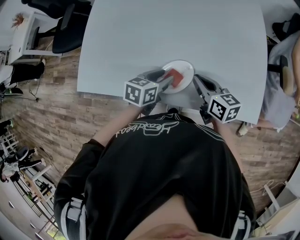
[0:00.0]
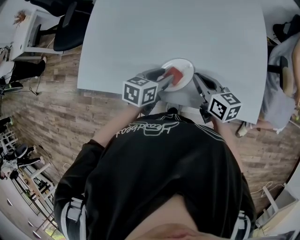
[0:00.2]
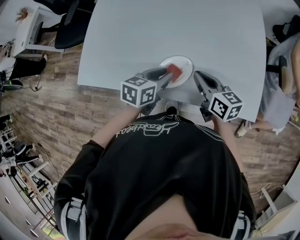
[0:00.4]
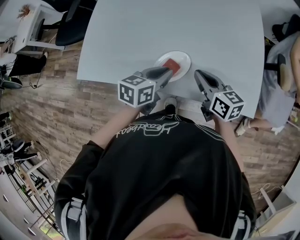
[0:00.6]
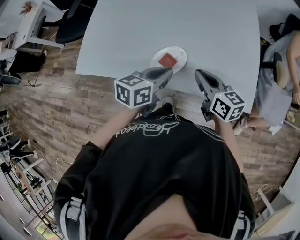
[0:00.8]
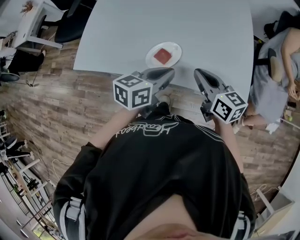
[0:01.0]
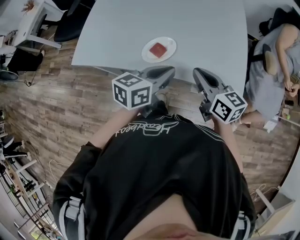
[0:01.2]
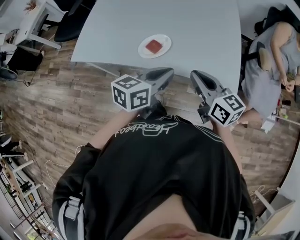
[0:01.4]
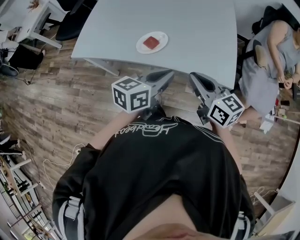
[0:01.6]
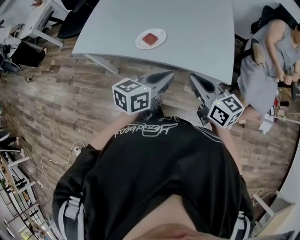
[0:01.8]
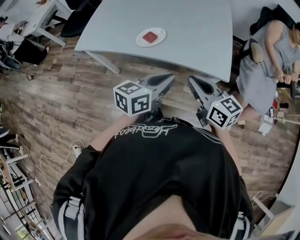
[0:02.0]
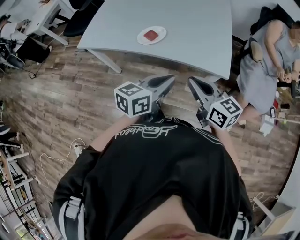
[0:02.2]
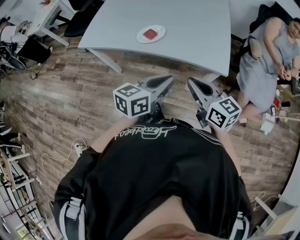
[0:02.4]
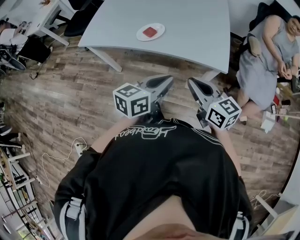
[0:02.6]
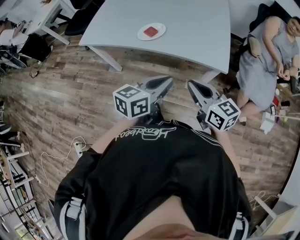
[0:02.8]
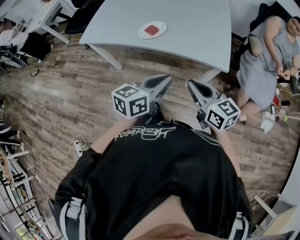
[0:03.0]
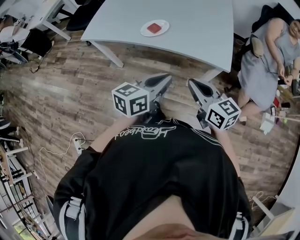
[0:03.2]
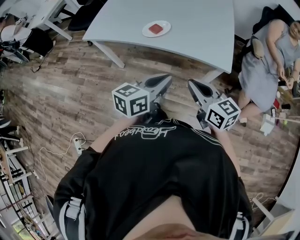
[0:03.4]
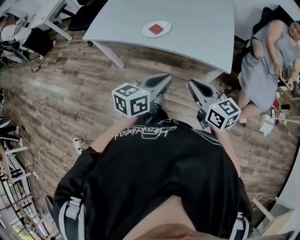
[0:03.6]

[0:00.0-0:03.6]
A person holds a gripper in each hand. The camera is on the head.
0:00.0 to 0:01.8: The right gripper moves backward, upward and to the right, some 30 cm, and rotates roughly 20 degrees. The left gripper shifts roughly 35 cm backward, to the right and upward, rotates some 20 degrees, and closes up.
0:01.8 to 0:03.6: Both grippers travel together backward, approximately 10 cm.

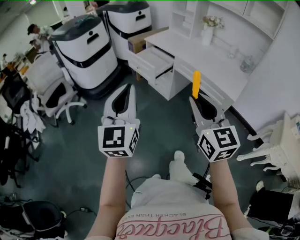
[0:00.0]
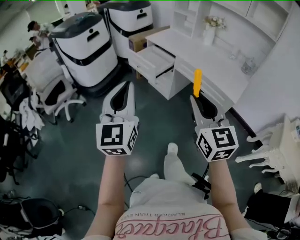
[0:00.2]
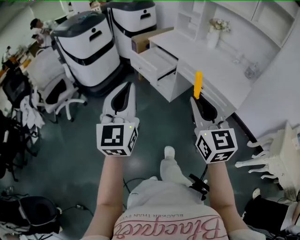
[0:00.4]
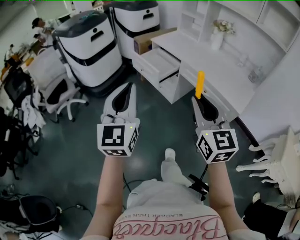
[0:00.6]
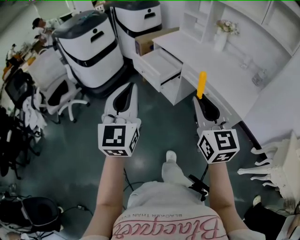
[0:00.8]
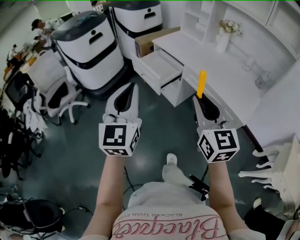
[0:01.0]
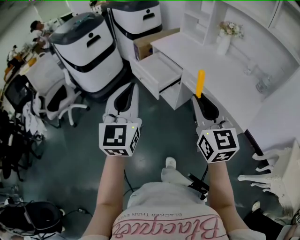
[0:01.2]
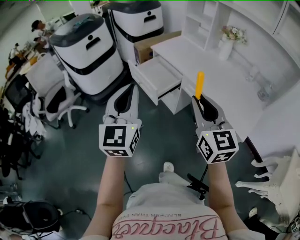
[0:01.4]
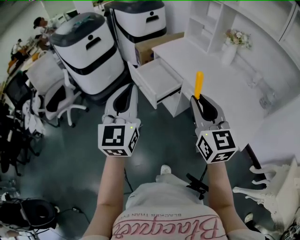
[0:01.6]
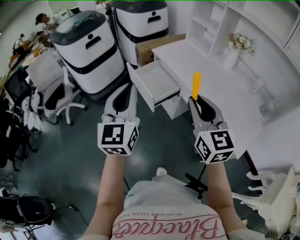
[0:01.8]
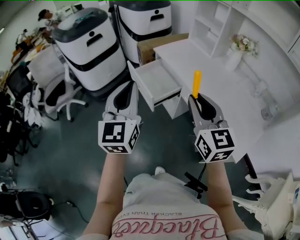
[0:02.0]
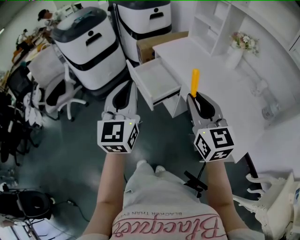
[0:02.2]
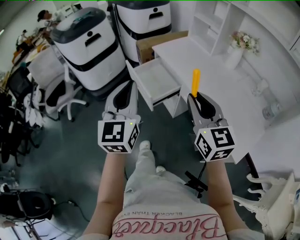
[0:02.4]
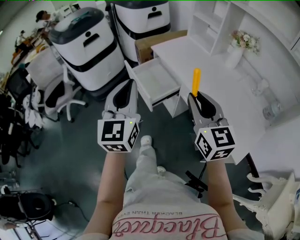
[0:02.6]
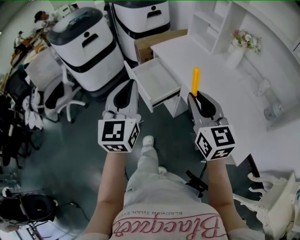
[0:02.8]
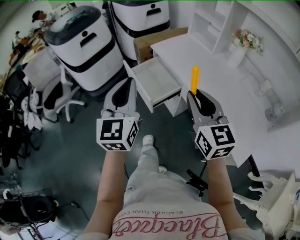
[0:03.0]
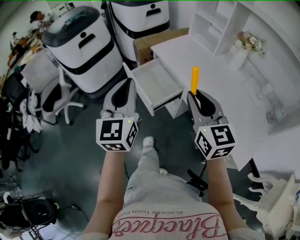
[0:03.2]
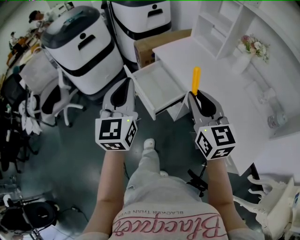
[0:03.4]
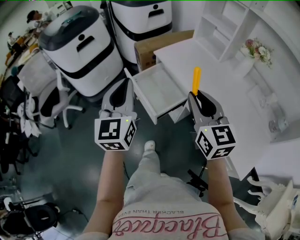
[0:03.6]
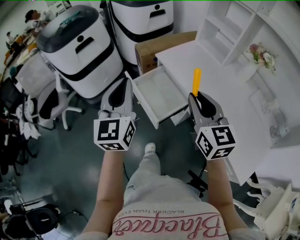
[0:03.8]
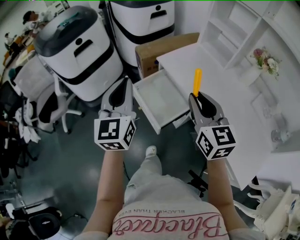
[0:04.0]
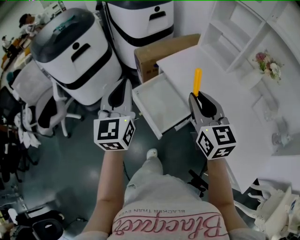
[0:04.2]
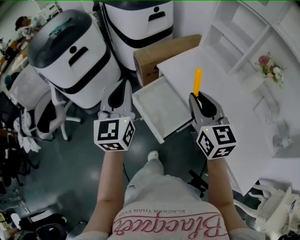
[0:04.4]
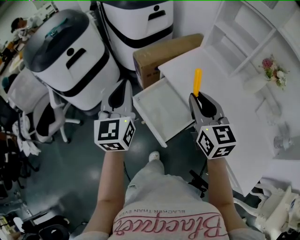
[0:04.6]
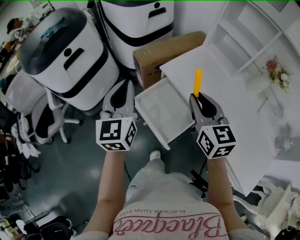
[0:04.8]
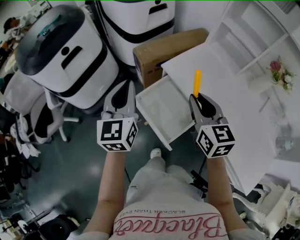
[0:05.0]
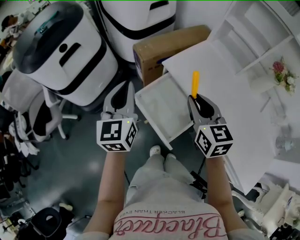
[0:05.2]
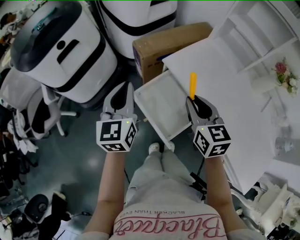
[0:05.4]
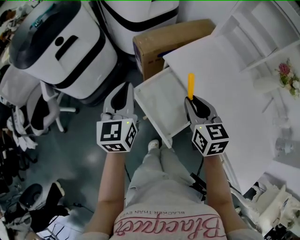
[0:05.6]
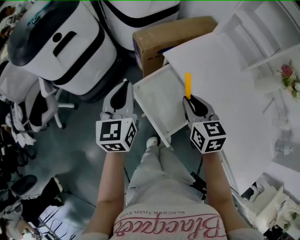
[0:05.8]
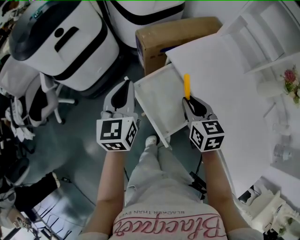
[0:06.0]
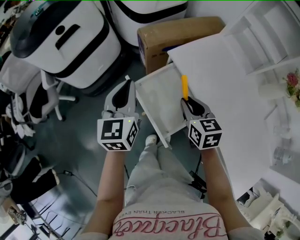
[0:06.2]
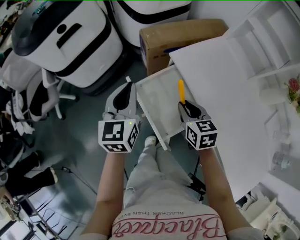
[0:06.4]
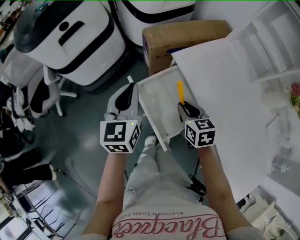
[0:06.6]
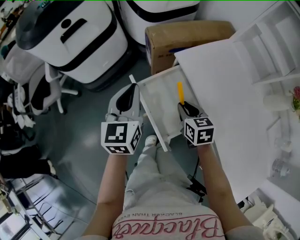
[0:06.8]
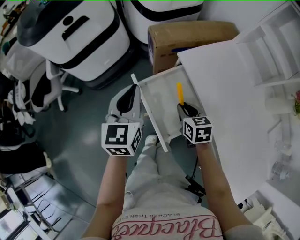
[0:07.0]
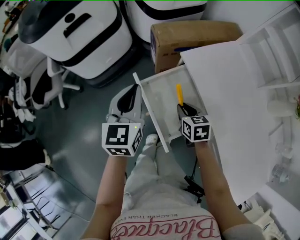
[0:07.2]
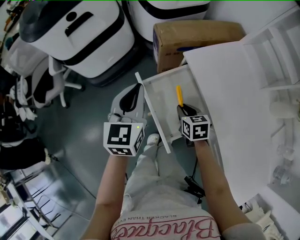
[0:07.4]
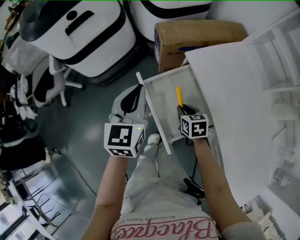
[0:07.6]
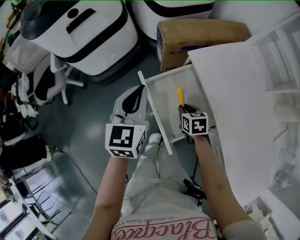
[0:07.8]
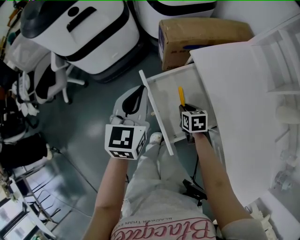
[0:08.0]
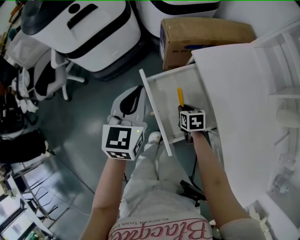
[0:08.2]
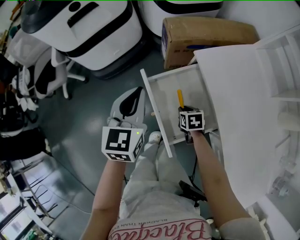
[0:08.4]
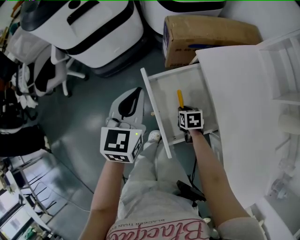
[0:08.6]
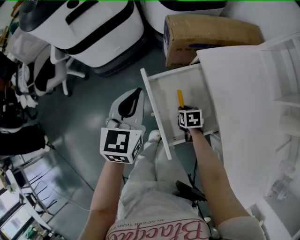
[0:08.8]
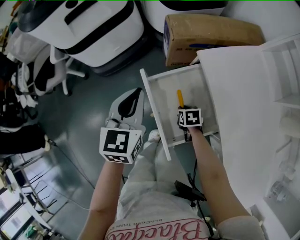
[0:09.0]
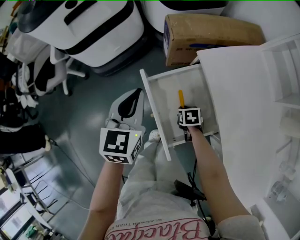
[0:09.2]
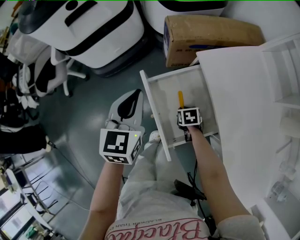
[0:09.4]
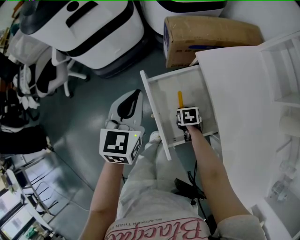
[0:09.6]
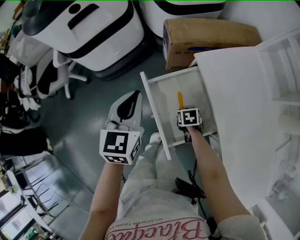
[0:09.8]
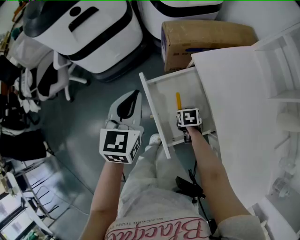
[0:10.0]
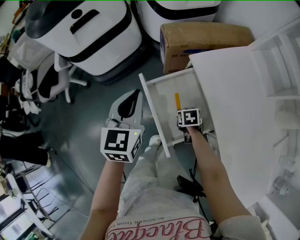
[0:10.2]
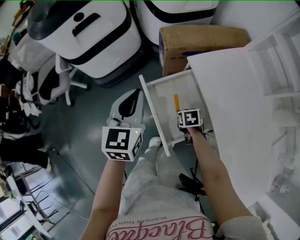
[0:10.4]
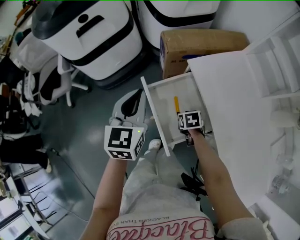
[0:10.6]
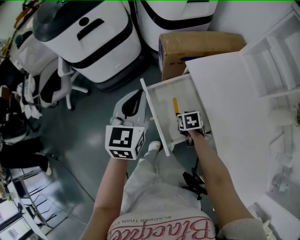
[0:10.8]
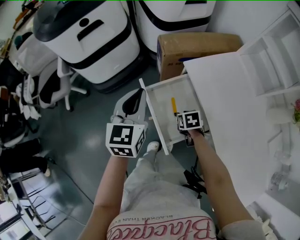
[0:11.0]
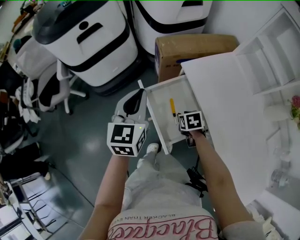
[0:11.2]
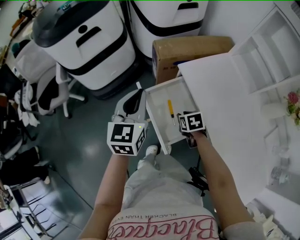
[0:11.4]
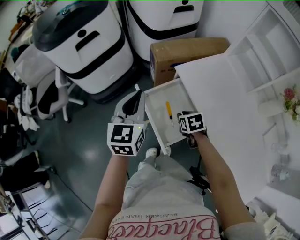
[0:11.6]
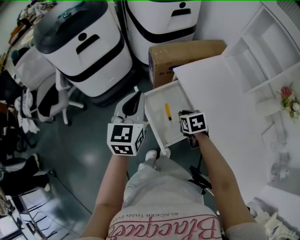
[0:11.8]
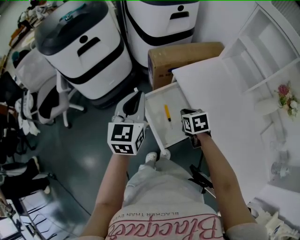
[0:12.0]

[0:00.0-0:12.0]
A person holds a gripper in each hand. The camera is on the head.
0:00.0 to 0:01.6: The two grippers go approximately 25 cm forward.
0:01.6 to 0:03.0: Both grippers move forward, approximately 10 cm.
0:03.0 to 0:04.4: The two grippers go roughly 25 cm forward.
0:04.4 to 0:06.0: Both grippers move downward and forward, approximately 15 cm. The right gripper turns by approximately 20 degrees.
0:06.0 to 0:07.6: The right gripper shifts approximately 20 cm downward, and rotates approximately 20 degrees.
0:07.6 to 0:09.0: The right gripper is displaced downward by roughly 10 cm.
0:09.0 to 0:10.4: The grippers both shift upward by about 5 cm.
0:10.4 to 0:12.0: The right gripper is displaced upward by approximately 15 cm, and closes. Meanwhile the left gripper shifts about 5 cm upward.

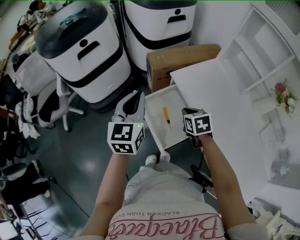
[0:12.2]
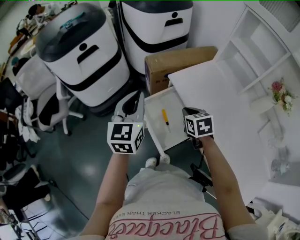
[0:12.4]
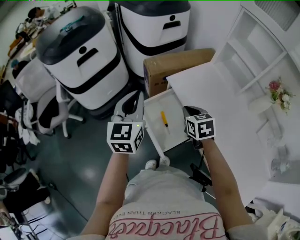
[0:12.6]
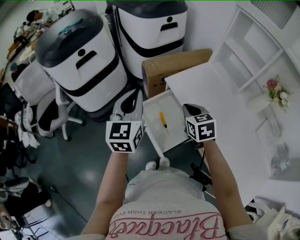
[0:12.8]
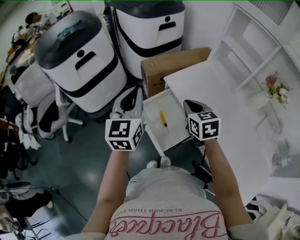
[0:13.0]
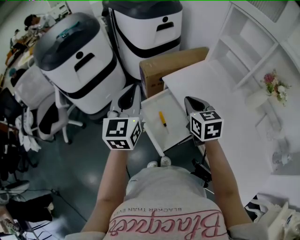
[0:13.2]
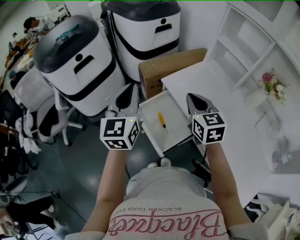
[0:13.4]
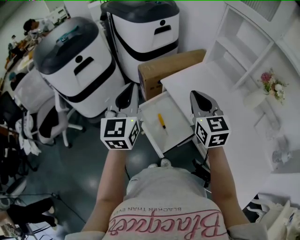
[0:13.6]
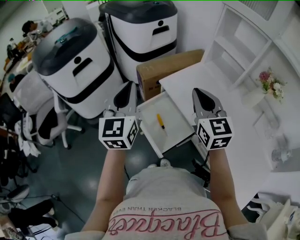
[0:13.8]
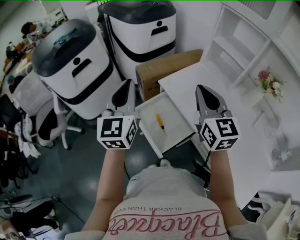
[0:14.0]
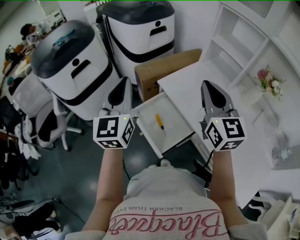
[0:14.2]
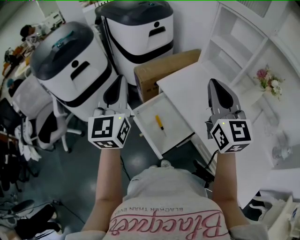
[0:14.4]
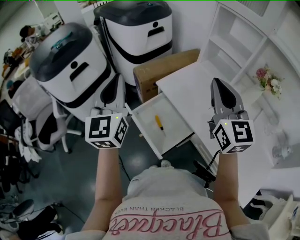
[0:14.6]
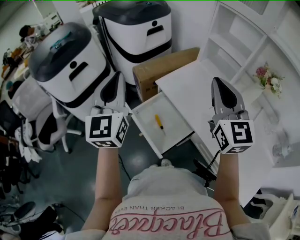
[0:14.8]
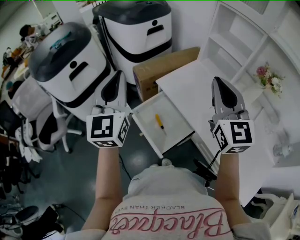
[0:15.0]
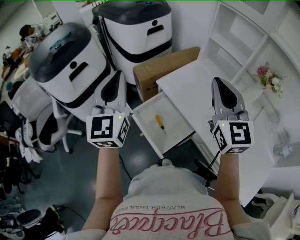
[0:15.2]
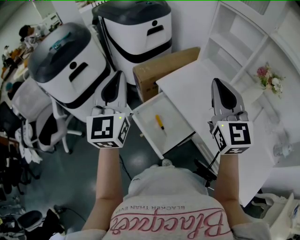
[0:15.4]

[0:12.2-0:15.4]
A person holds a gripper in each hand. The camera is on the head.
0:12.2 to 0:13.8: The right gripper shifts about 25 cm upward, and tilts its fingers some 40 degrees upward, while the left gripper goes some 10 cm upward.
0:13.8 to 0:15.4: Both grippers travel together upward, some 5 cm.

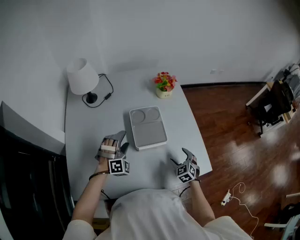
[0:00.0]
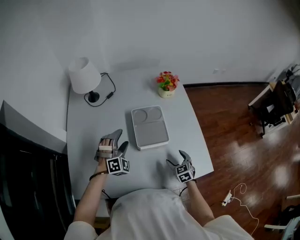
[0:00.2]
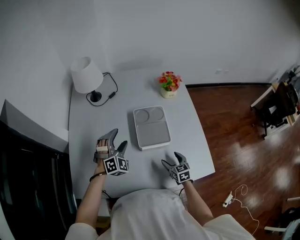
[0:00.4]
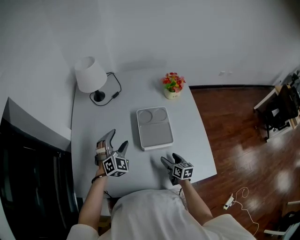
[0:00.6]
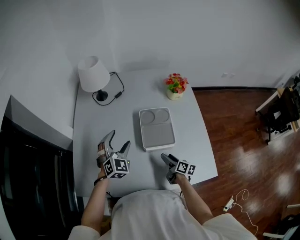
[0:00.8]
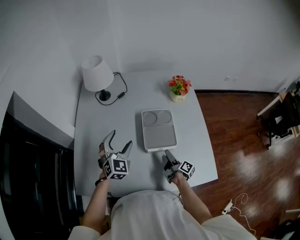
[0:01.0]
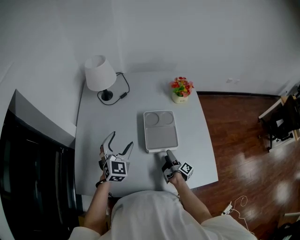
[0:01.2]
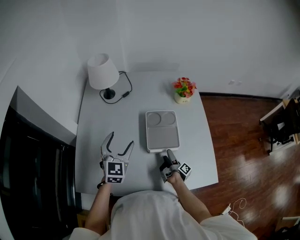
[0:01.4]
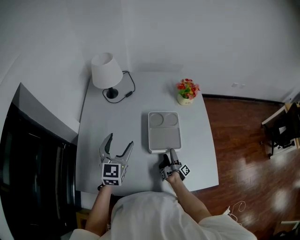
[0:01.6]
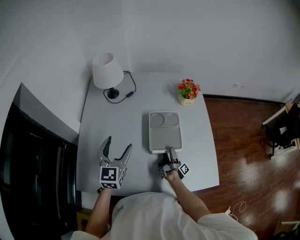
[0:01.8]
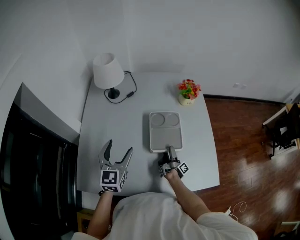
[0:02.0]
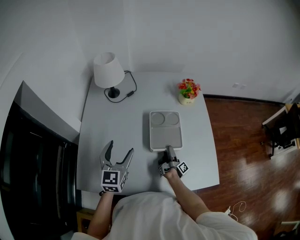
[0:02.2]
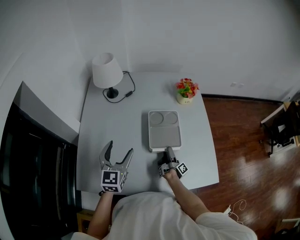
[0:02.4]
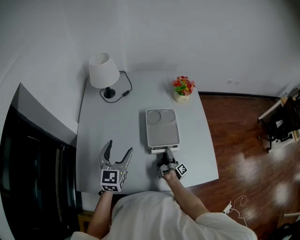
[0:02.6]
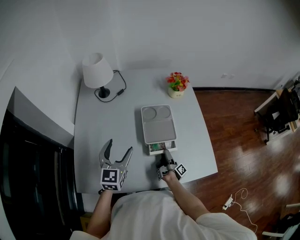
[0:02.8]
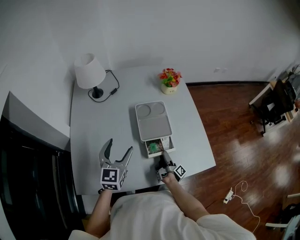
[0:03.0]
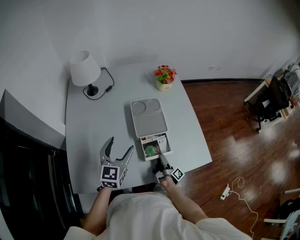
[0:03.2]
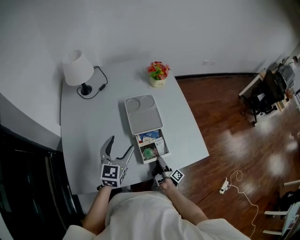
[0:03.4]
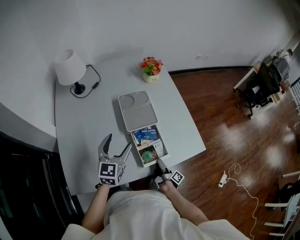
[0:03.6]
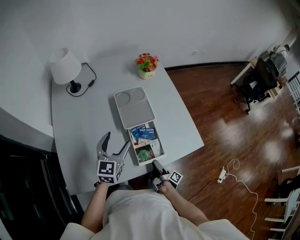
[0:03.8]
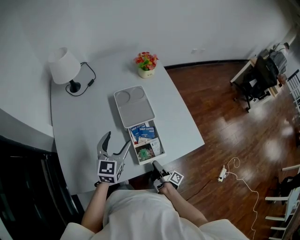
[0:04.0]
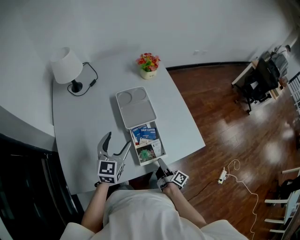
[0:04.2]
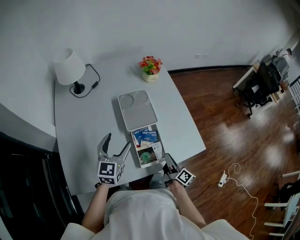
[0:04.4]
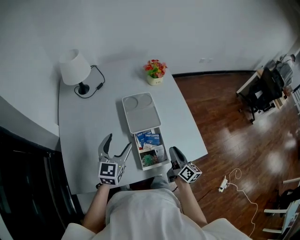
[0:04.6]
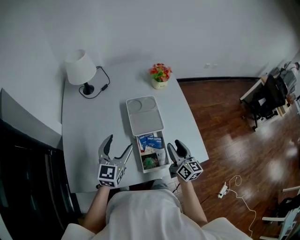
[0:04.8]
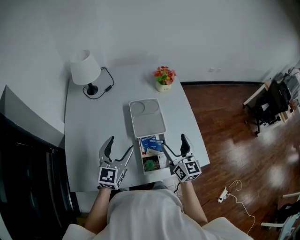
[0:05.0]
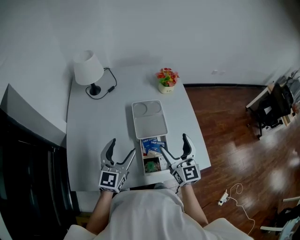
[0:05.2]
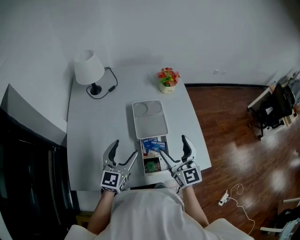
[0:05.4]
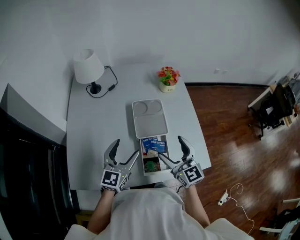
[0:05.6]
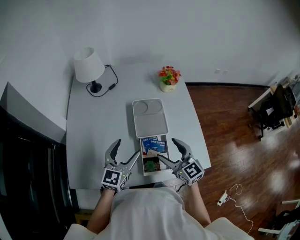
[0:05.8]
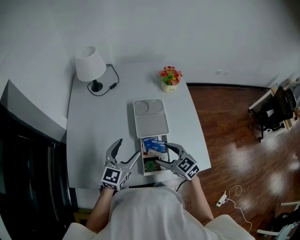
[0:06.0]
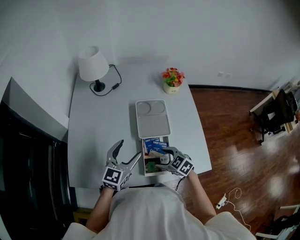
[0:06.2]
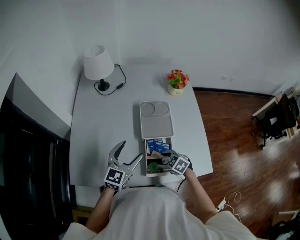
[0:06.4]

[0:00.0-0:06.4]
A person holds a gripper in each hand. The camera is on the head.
0:00.0 to 0:01.6: The left gripper shifts roughly 15 cm upward and to the left, and rotates around the line of its fingers by approximately 70 degrees, counterclockwise from behind. Meanwhile the right gripper moves to the left and forward, roughly 10 cm, and twists approximately 130 degrees clockwise, seen from behind.
0:01.6 to 0:03.2: The right gripper is displaced backward by roughly 10 cm, and closes; the left gripper shifts roughly 10 cm backward and to the right.
0:03.2 to 0:04.8: The right gripper is displaced upward by roughly 20 cm, and rotates around the line of its fingers by approximately 80 degrees, counterclockwise from behind.
0:04.8 to 0:06.4: The right gripper heads downward, covering roughly 15 cm, points its fingers approximately 50 degrees further downward, and opens, then closes once more.
